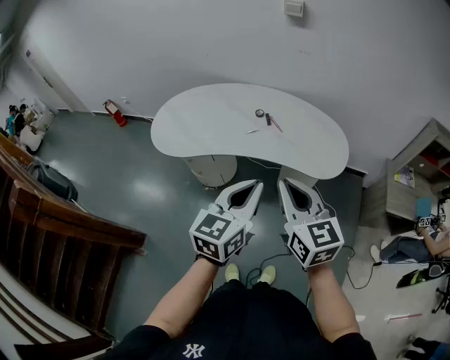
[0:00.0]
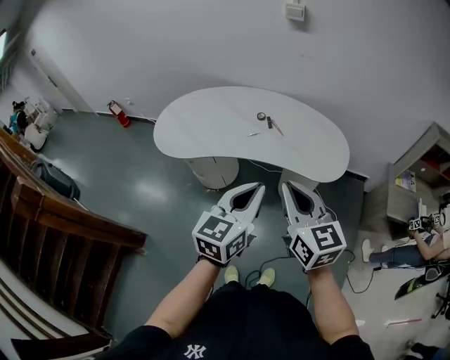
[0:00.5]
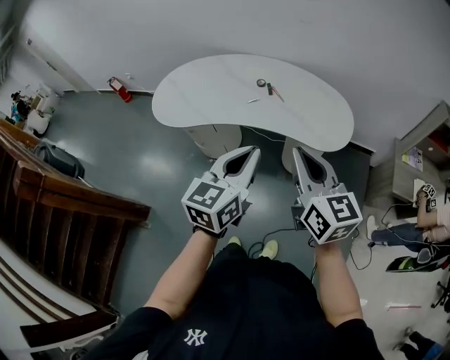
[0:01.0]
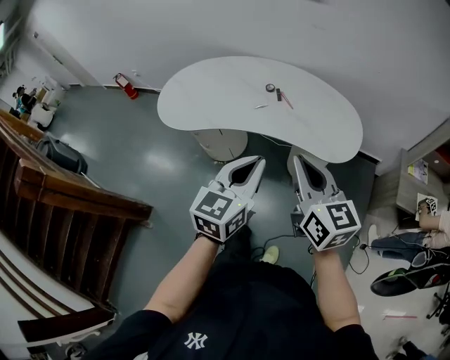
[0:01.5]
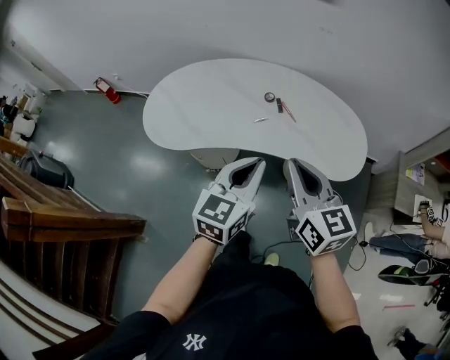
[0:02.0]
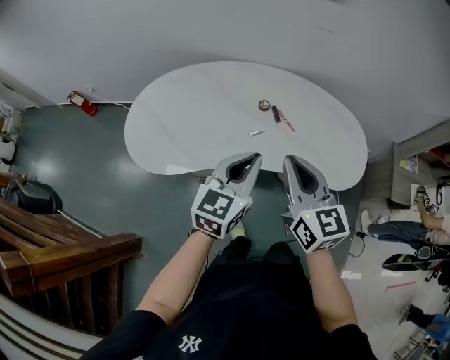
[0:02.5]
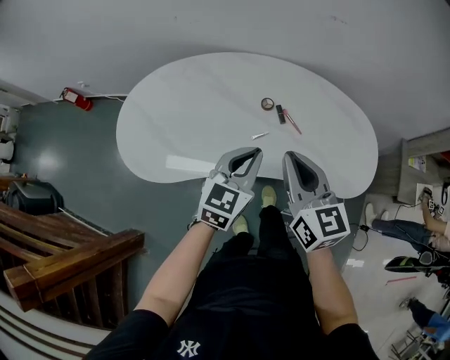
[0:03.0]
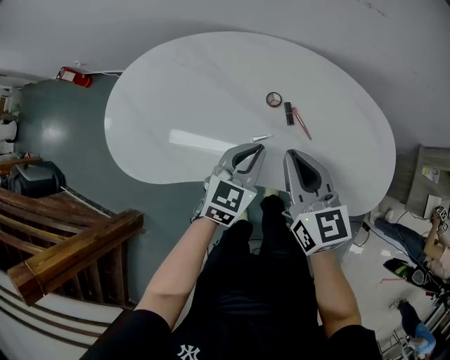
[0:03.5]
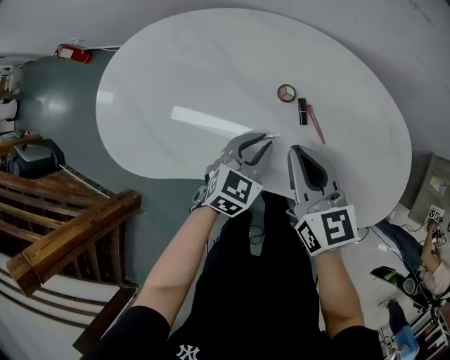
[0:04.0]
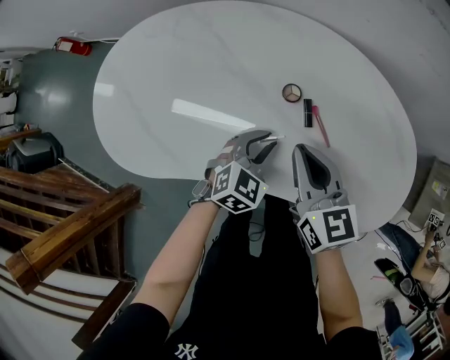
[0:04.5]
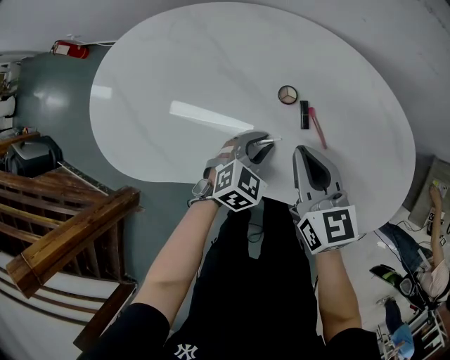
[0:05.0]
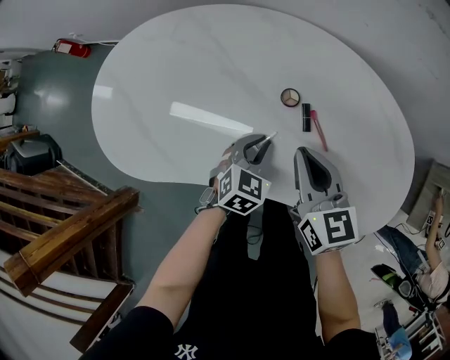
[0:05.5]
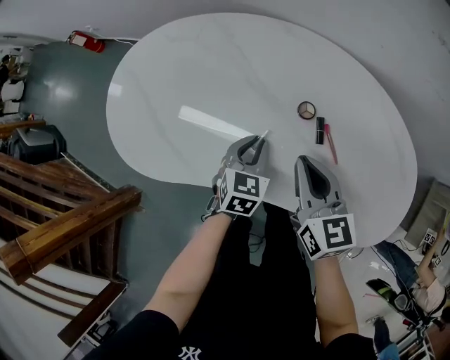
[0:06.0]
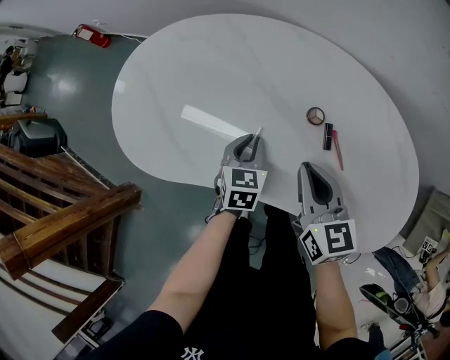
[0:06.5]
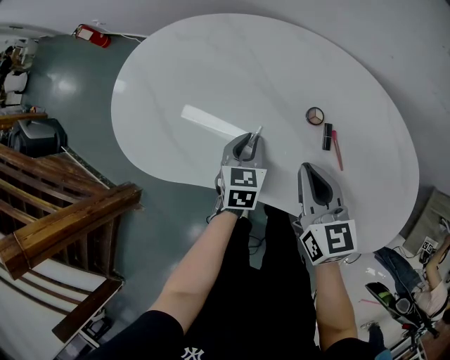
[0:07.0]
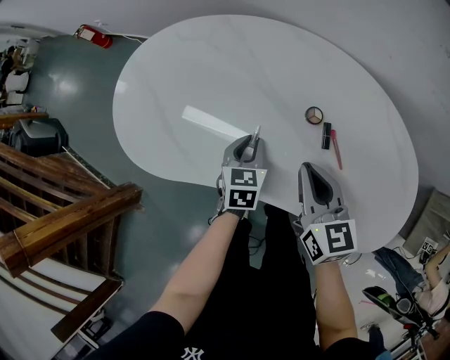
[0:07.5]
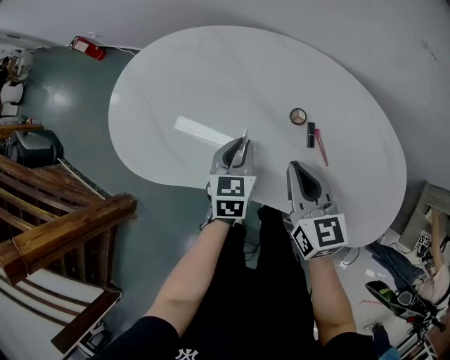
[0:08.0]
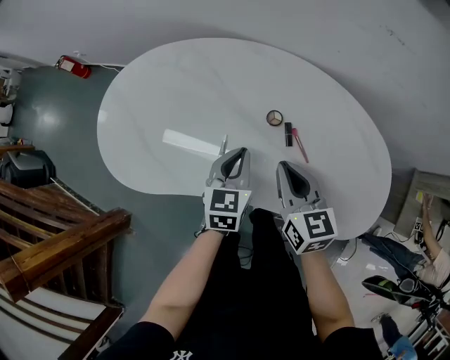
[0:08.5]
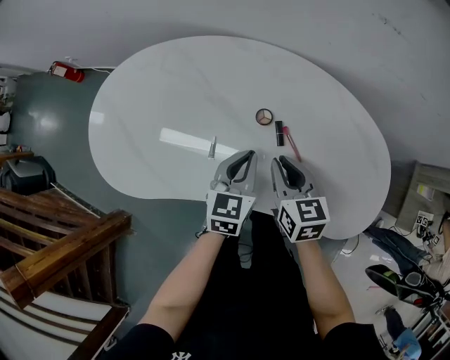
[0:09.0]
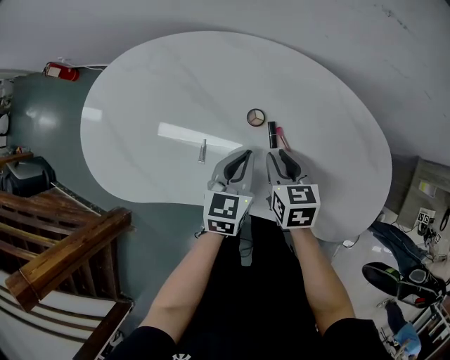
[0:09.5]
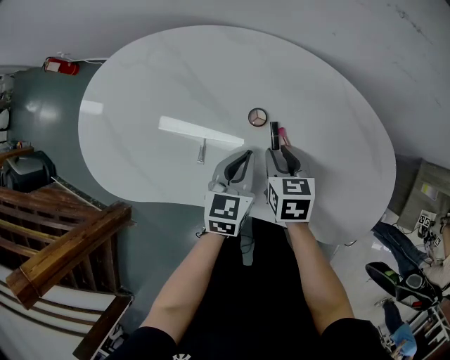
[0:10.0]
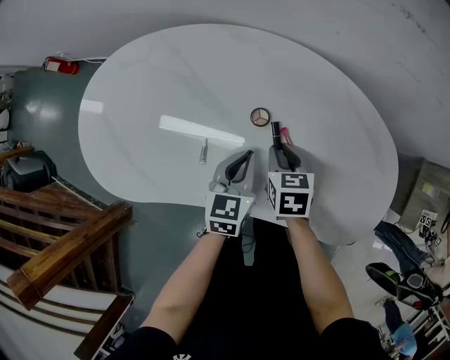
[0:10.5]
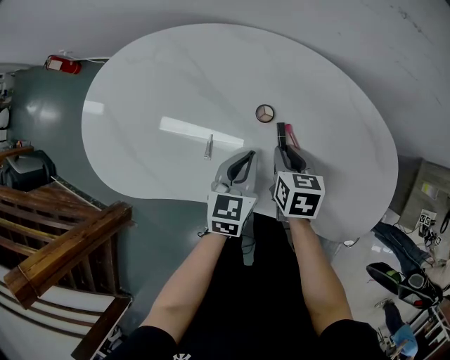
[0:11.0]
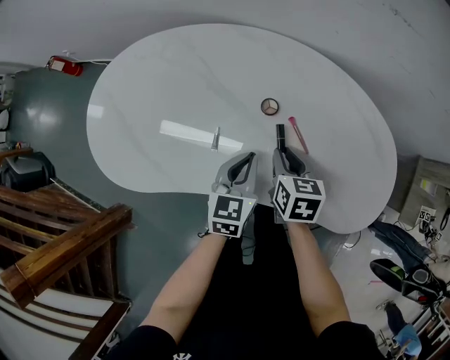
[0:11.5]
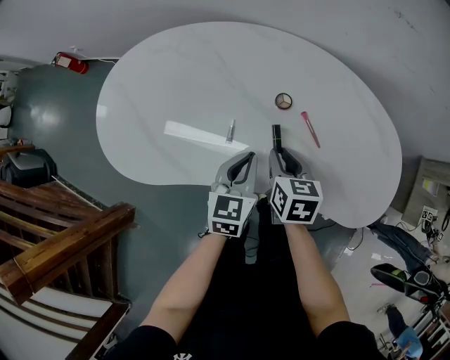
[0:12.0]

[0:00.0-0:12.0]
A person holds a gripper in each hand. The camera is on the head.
0:00.0 to 0:02.0: Both grippers travel together forward, roughly 15 cm.
0:02.0 to 0:04.0: Both grippers move forward and downward, roughly 40 cm. The left gripper turns by some 30 degrees.
0:04.0 to 0:06.0: The left gripper moves to the left, roughly 5 cm, and swivels approximately 20 degrees.
0:06.0 to 0:08.0: The left gripper changes place by approximately 5 cm.
0:08.0 to 0:10.0: The right gripper goes roughly 15 cm downward and to the right, rotates about 30 degrees, and opens. Meanwhile the left gripper travels to the right by some 10 cm.
0:10.0 to 0:12.0: The grippers both shift backward and to the left by roughly 10 cm.

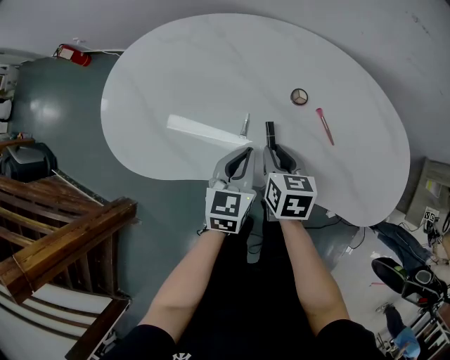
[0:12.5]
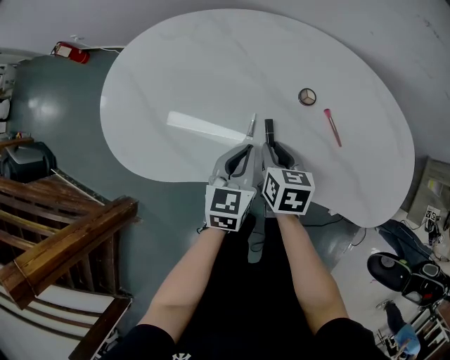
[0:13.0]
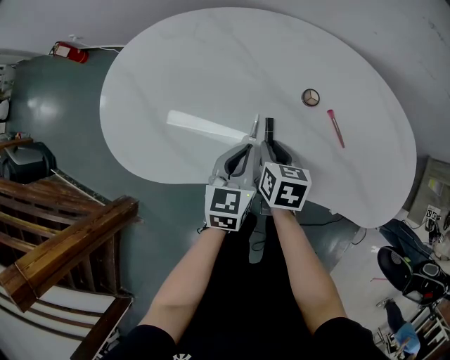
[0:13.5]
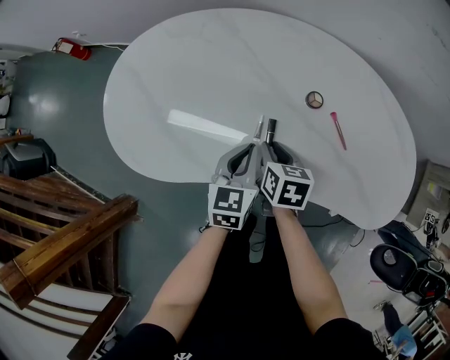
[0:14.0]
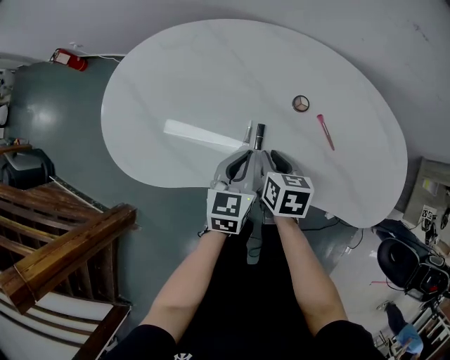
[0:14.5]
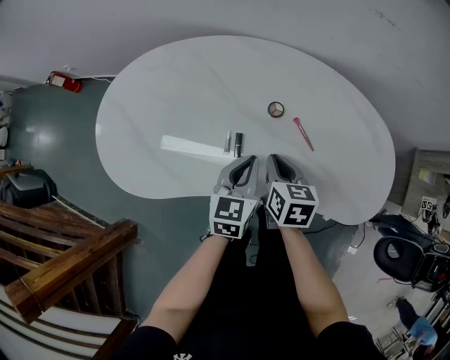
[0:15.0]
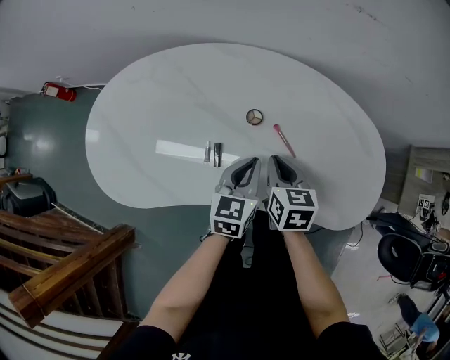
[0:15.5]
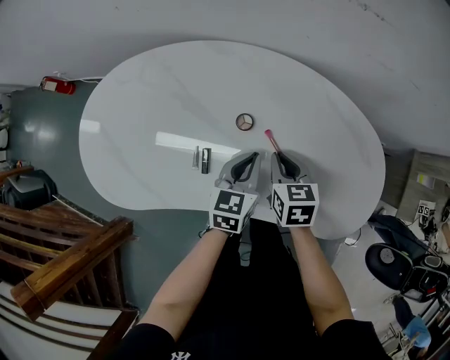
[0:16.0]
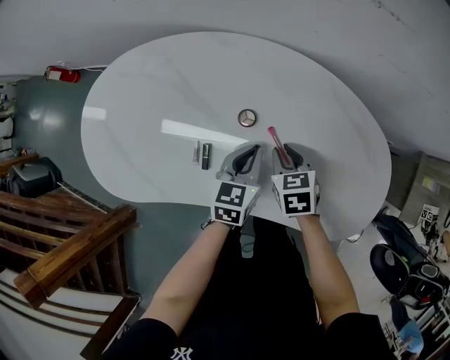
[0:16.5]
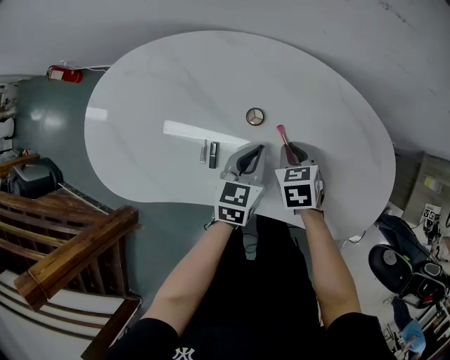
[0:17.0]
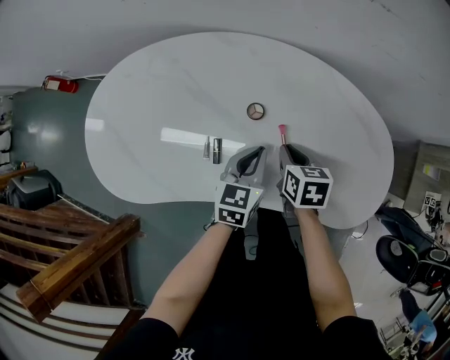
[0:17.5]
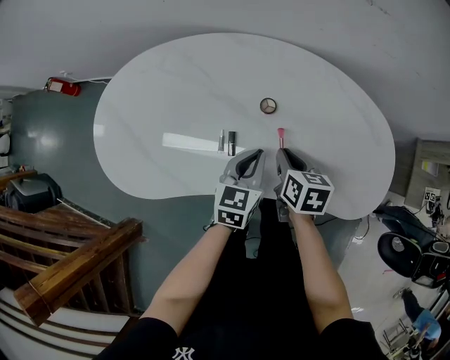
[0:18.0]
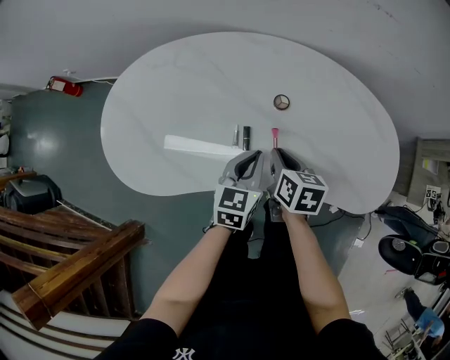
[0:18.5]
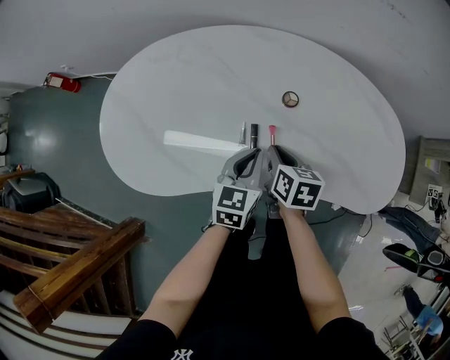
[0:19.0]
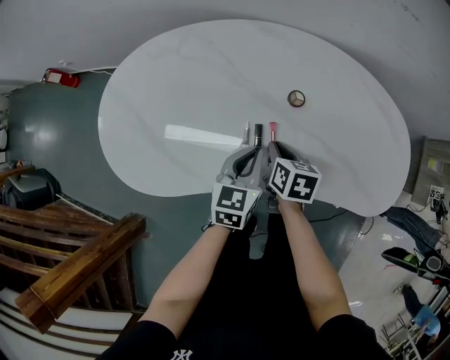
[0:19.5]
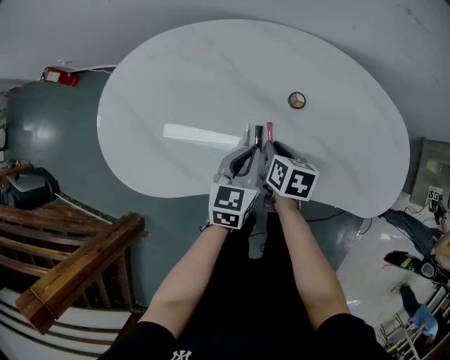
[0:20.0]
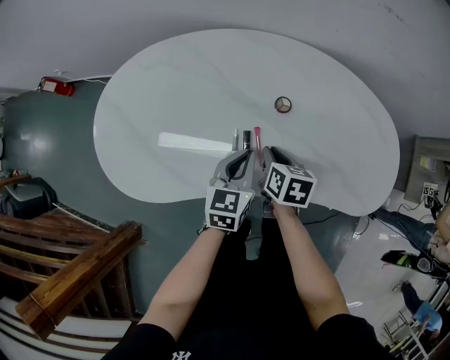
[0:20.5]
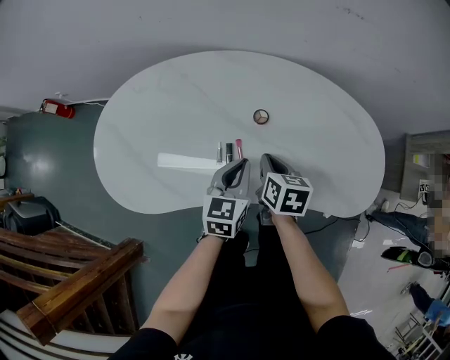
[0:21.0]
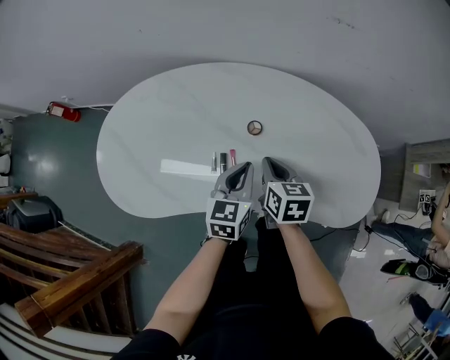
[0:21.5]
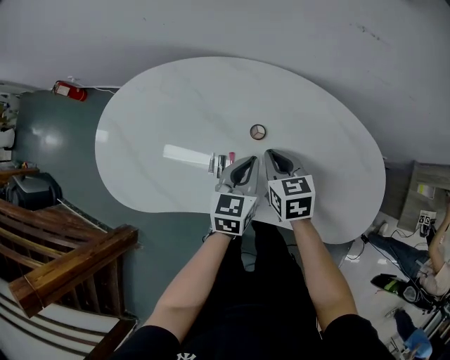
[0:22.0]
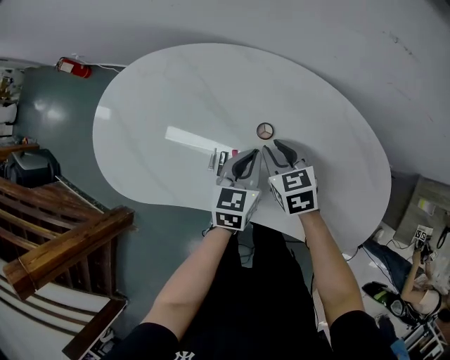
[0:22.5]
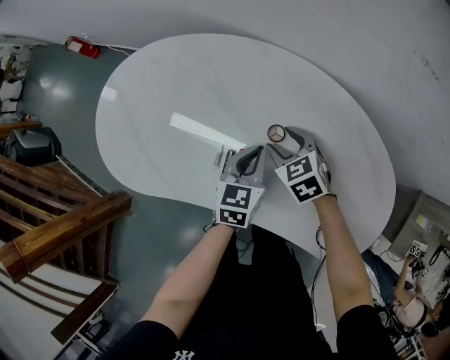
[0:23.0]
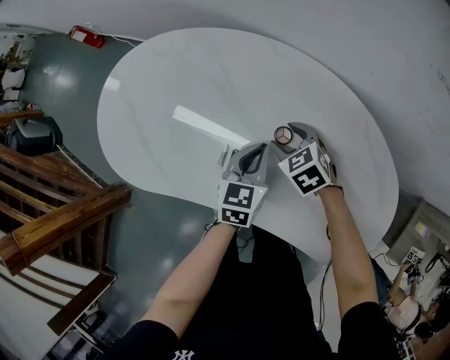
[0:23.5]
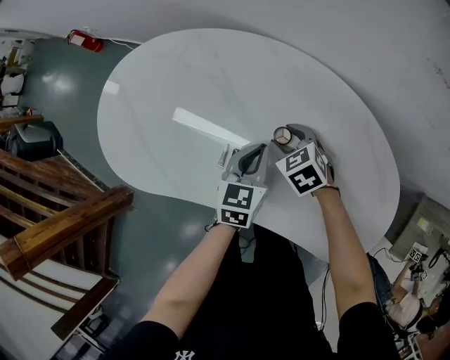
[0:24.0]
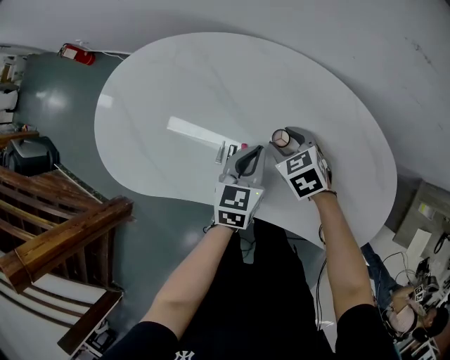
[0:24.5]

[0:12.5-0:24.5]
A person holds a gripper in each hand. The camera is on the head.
0:12.5 to 0:14.5: There are only small adjustments of the grippers.
0:14.5 to 0:16.5: Both grippers move to the right and forward, some 20 cm. The right gripper rotates approximately 20 degrees.
0:16.5 to 0:18.5: The right gripper moves to the left, backward and upward, roughly 15 cm, and swivels about 30 degrees. Meanwhile the left gripper heads to the left and backward, covering some 15 cm.
0:20.5 to 0:22.5: The right gripper goes roughly 10 cm forward and to the right, and rolls counterclockwise, seen from behind, by roughly 40 degrees; the left gripper is displaced to the right and forward by about 10 cm.
0:22.5 to 0:24.5: The right gripper opens up.

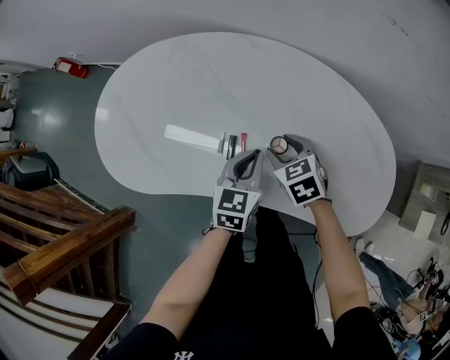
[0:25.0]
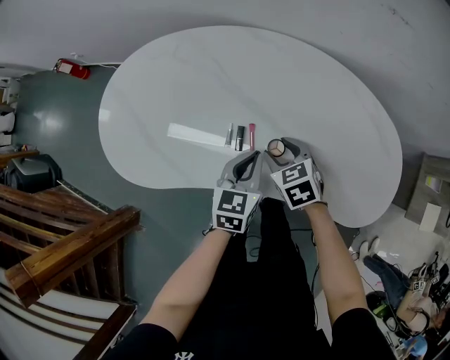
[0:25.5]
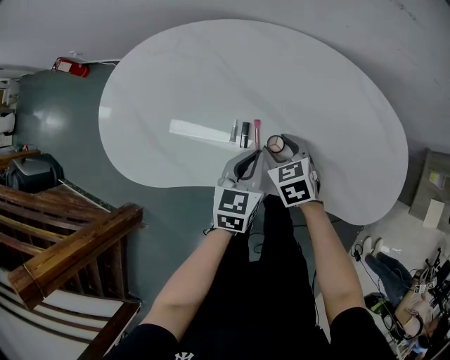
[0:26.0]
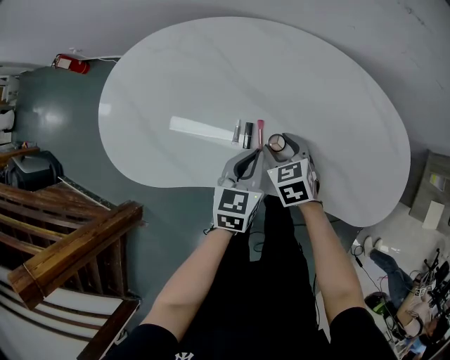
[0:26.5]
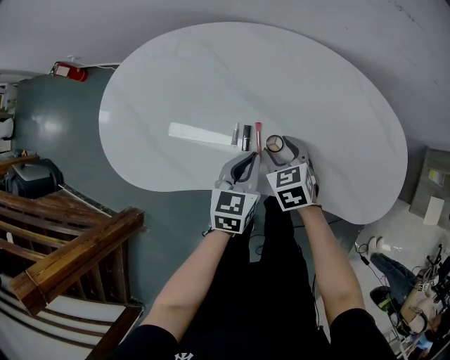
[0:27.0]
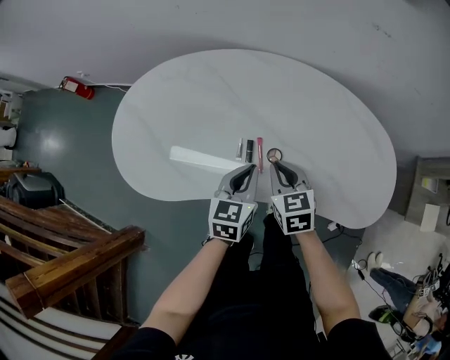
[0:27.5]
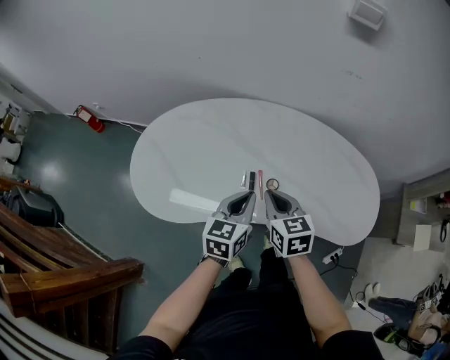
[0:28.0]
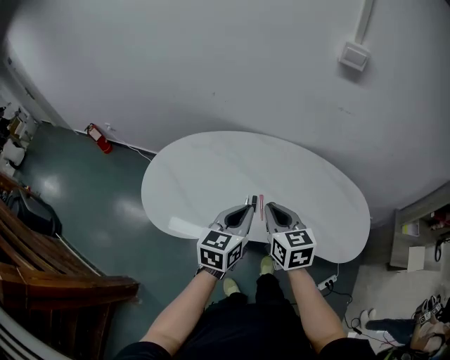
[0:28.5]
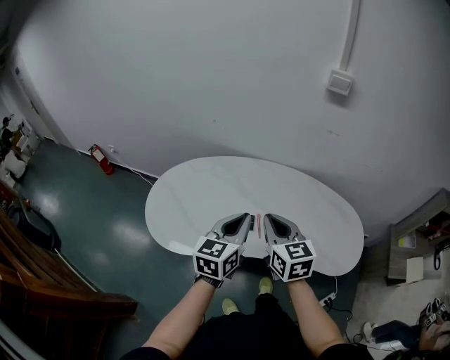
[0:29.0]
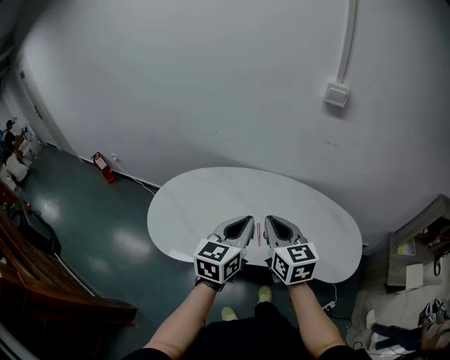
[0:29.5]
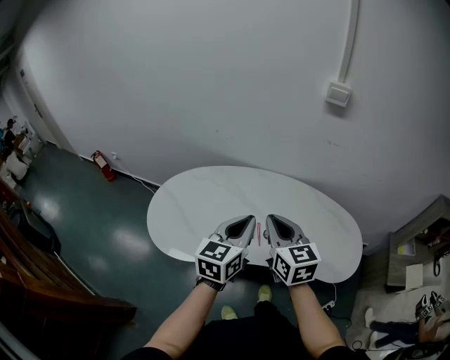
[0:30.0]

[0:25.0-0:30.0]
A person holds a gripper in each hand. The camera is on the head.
0:25.0 to 0:27.5: The left gripper travels to the left by approximately 5 cm. The right gripper goes approximately 10 cm backward and upward, turns by about 20 degrees, and closes its fingers.
0:27.5 to 0:30.0: Both grippers travel together upward, about 30 cm. The right gripper turns by roughly 30 degrees, while the left gripper changes its angle by some 20 degrees.
